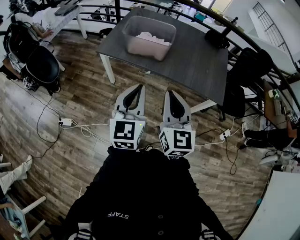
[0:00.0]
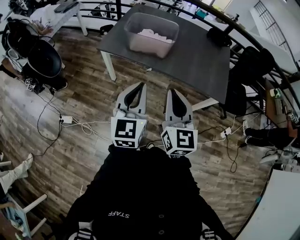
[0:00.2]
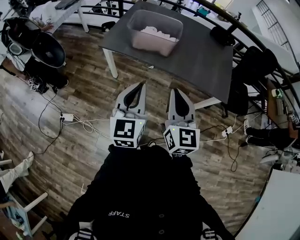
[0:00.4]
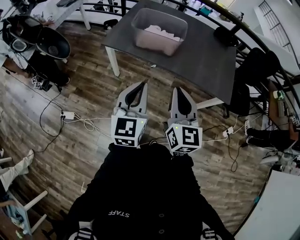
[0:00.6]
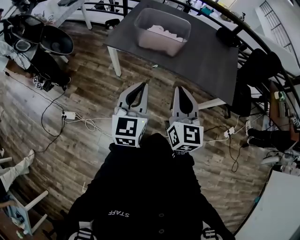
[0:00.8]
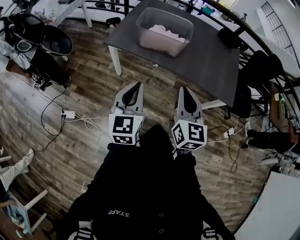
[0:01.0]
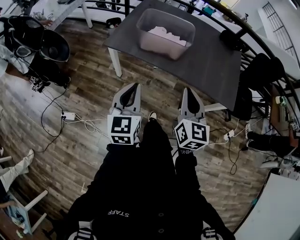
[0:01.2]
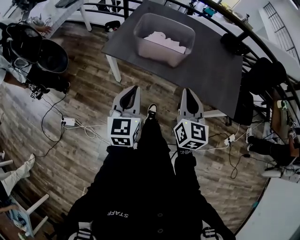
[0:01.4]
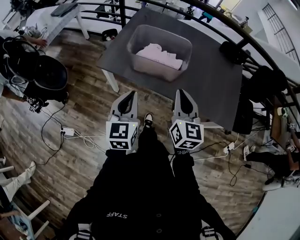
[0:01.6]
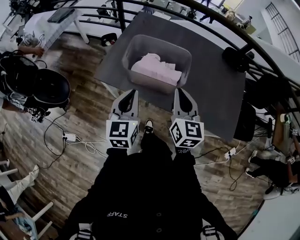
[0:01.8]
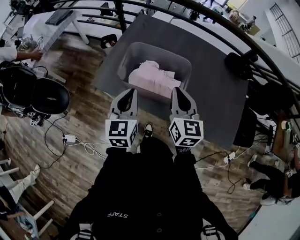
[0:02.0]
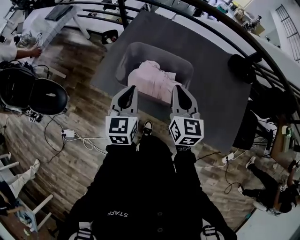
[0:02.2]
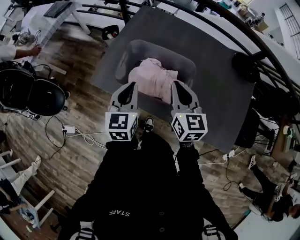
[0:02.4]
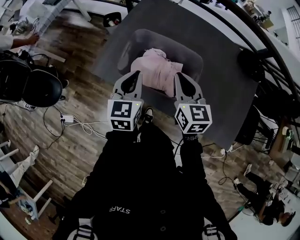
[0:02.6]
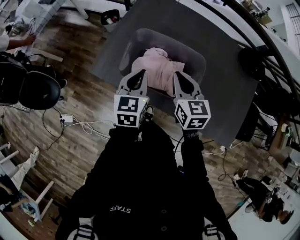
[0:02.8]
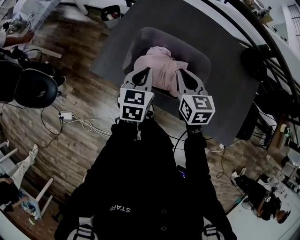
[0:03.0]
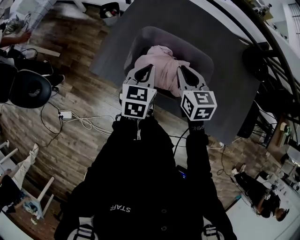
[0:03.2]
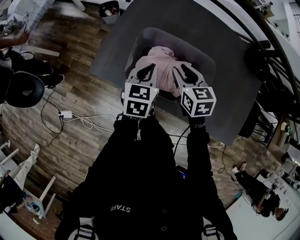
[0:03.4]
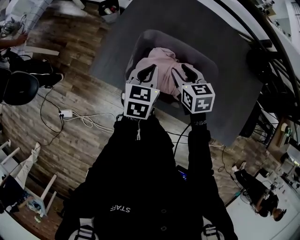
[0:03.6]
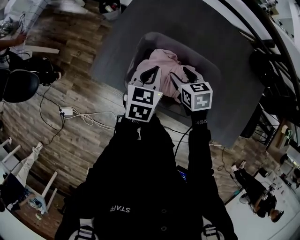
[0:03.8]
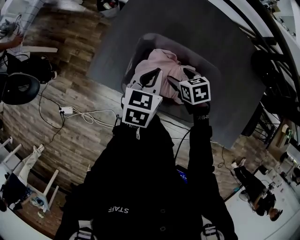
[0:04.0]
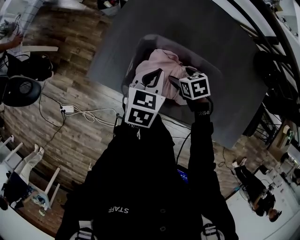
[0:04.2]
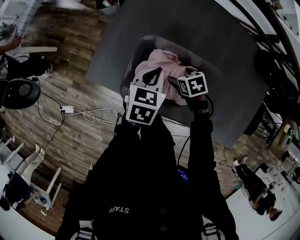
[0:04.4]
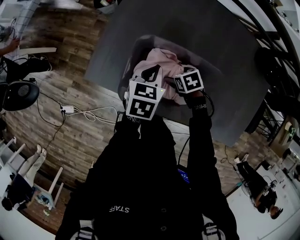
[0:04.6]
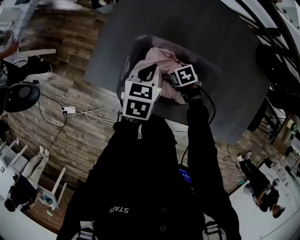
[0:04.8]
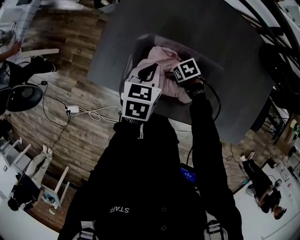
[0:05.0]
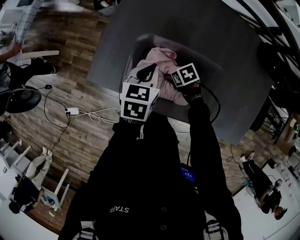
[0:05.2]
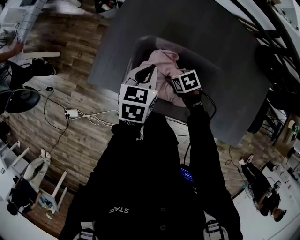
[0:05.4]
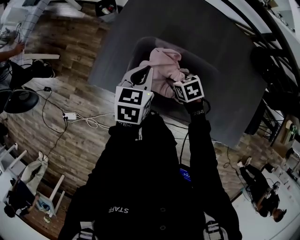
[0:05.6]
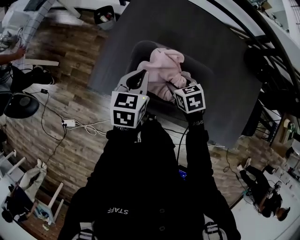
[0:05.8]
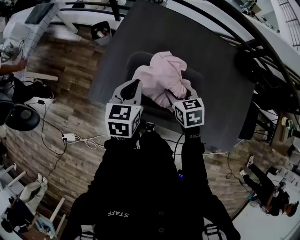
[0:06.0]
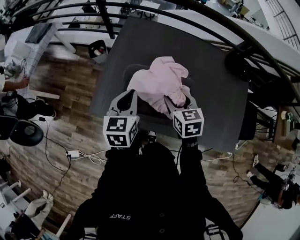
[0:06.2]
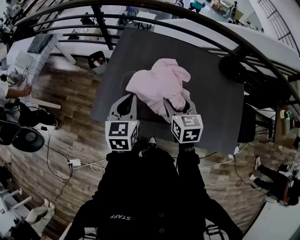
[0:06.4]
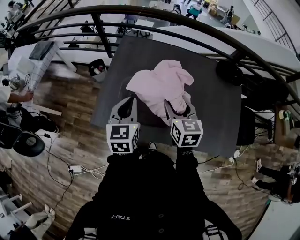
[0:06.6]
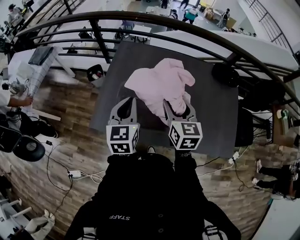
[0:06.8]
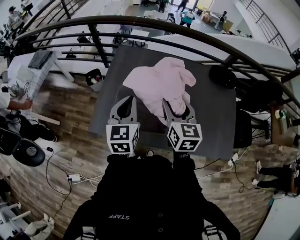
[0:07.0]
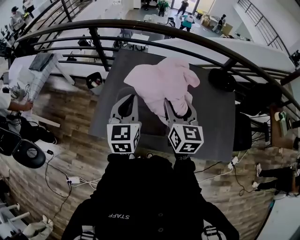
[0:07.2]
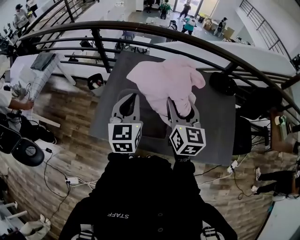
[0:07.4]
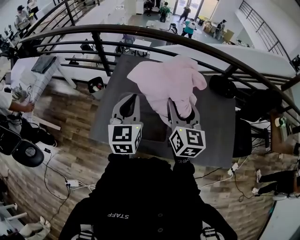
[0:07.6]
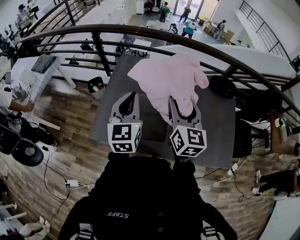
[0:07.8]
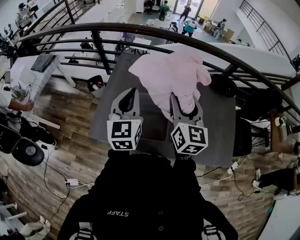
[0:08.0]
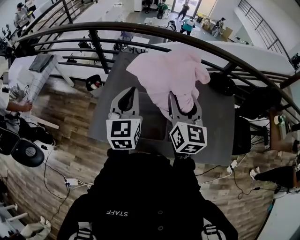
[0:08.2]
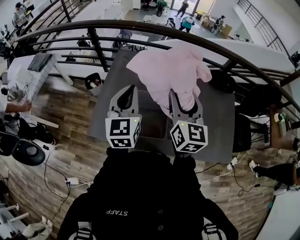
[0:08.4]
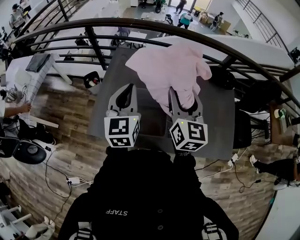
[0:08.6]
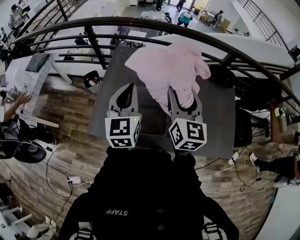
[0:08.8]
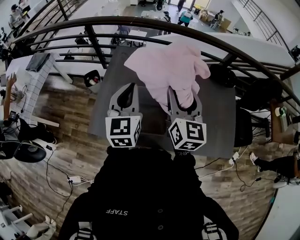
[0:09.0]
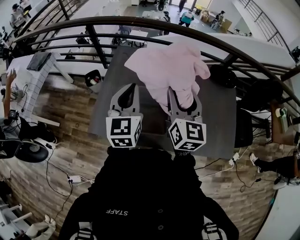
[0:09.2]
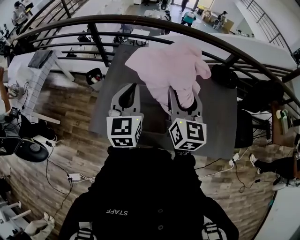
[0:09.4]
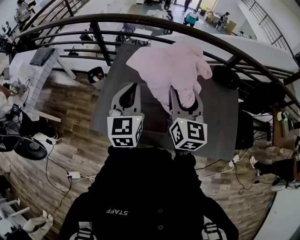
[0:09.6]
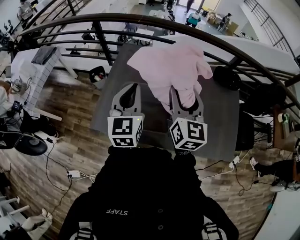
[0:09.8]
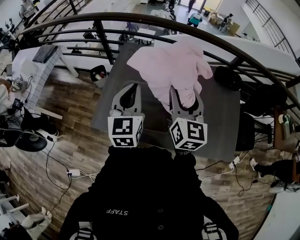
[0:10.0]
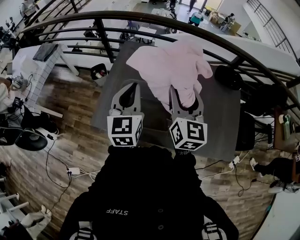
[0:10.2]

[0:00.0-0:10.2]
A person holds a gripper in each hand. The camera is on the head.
0:00.0 to 0:01.4: The left gripper heads forward, downward and to the left, covering approximately 20 cm. Meanwhile the right gripper moves forward and downward, about 20 cm.
0:01.4 to 0:03.0: Both grippers travel together forward, approximately 40 cm. The left gripper rotates roughly 20 degrees; the right gripper turns by roughly 30 degrees.
0:03.0 to 0:04.4: The left gripper heads forward and downward, covering roughly 10 cm; the right gripper is displaced downward by some 20 cm, tips its fingers downward by about 40 degrees, and opens.
0:04.4 to 0:05.8: The right gripper is displaced upward by approximately 10 cm. Meanwhile the left gripper travels upward by about 5 cm.
0:05.8 to 0:07.2: The left gripper is displaced upward by approximately 20 cm, and turns by about 30 degrees, while the right gripper goes approximately 30 cm upward, and points its fingers about 50 degrees further upward.
0:07.2 to 0:10.2: The grippers make only small movements.

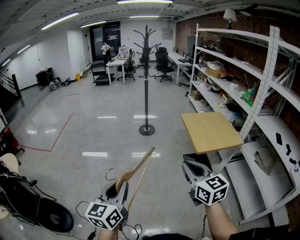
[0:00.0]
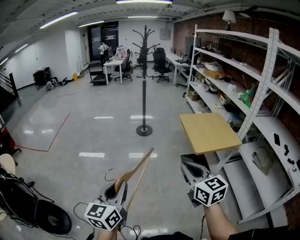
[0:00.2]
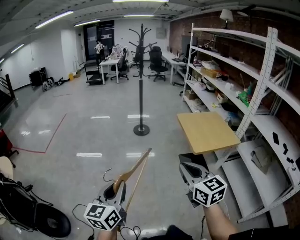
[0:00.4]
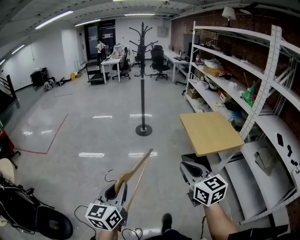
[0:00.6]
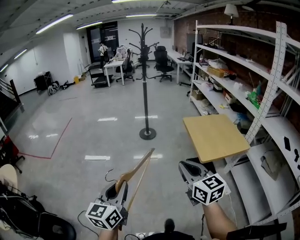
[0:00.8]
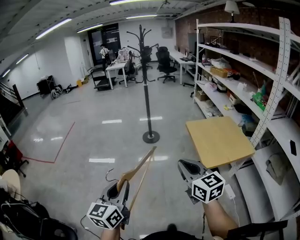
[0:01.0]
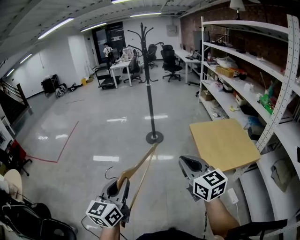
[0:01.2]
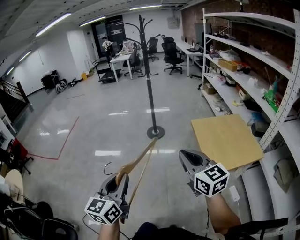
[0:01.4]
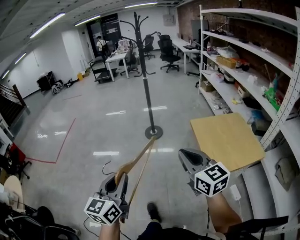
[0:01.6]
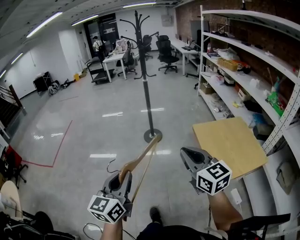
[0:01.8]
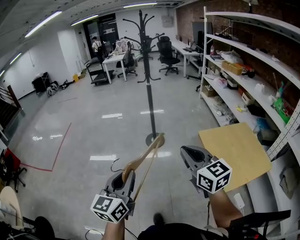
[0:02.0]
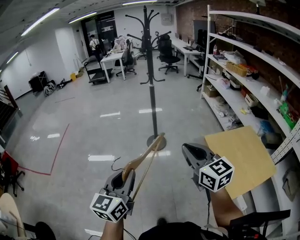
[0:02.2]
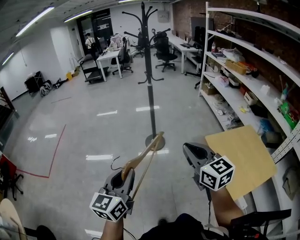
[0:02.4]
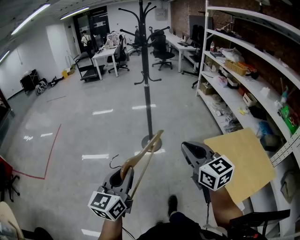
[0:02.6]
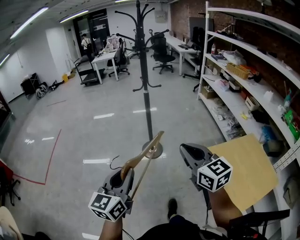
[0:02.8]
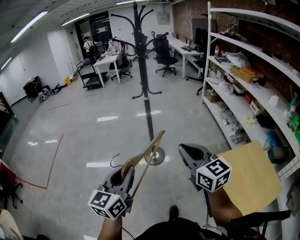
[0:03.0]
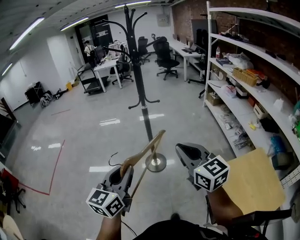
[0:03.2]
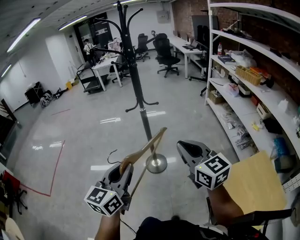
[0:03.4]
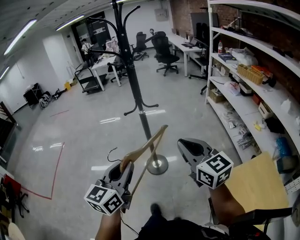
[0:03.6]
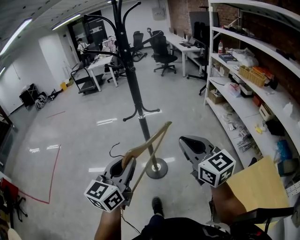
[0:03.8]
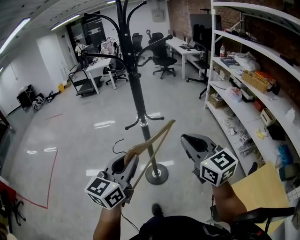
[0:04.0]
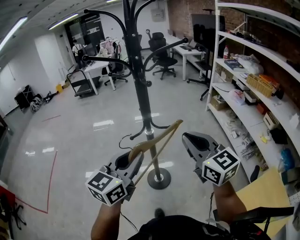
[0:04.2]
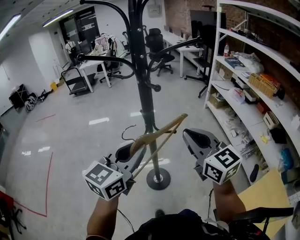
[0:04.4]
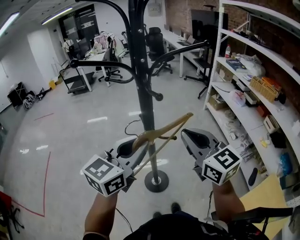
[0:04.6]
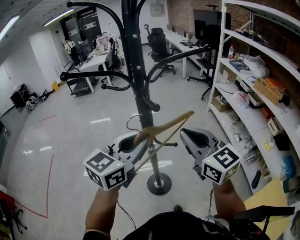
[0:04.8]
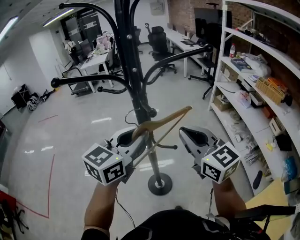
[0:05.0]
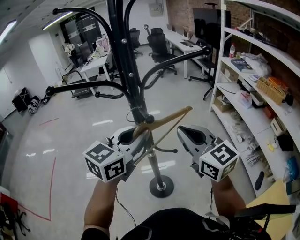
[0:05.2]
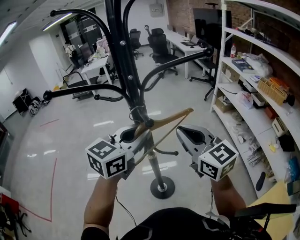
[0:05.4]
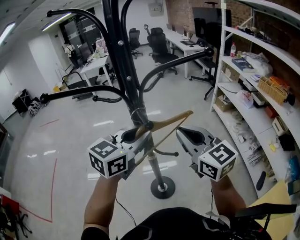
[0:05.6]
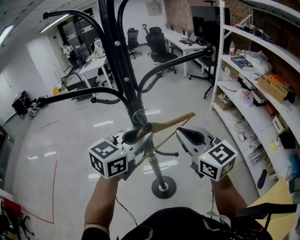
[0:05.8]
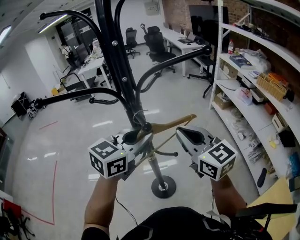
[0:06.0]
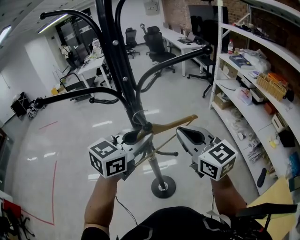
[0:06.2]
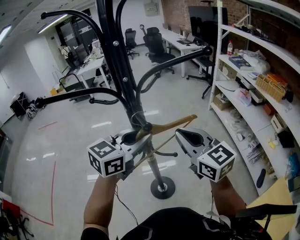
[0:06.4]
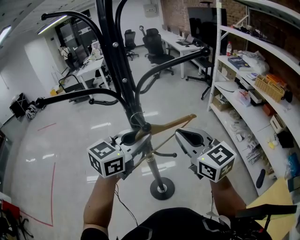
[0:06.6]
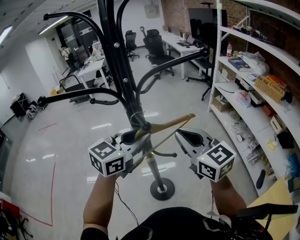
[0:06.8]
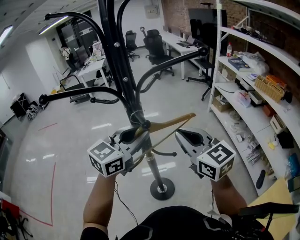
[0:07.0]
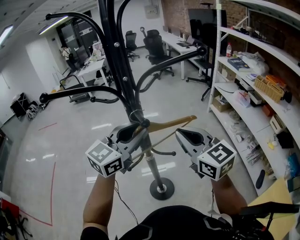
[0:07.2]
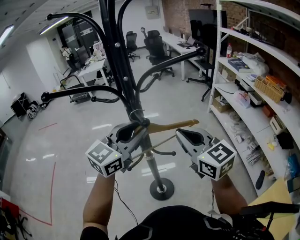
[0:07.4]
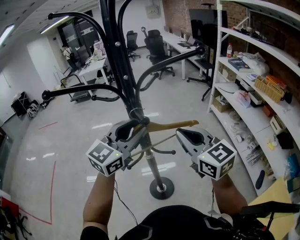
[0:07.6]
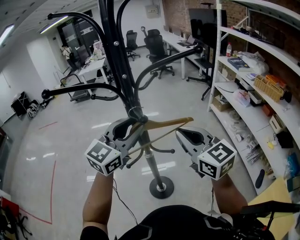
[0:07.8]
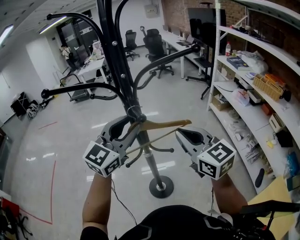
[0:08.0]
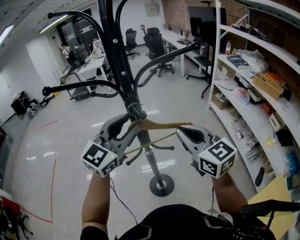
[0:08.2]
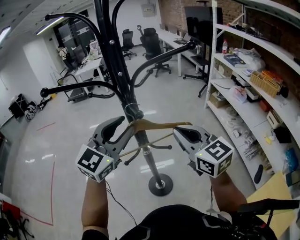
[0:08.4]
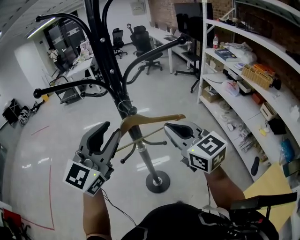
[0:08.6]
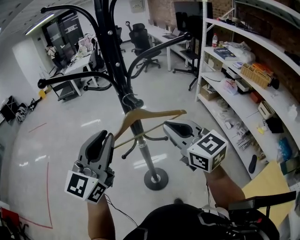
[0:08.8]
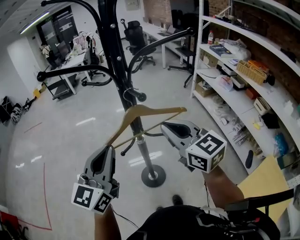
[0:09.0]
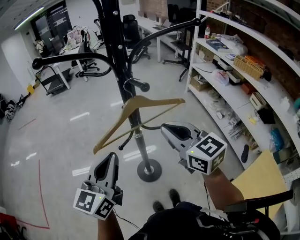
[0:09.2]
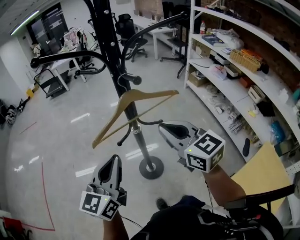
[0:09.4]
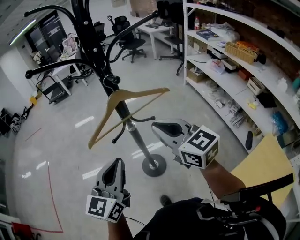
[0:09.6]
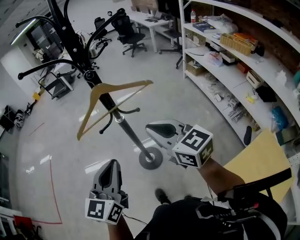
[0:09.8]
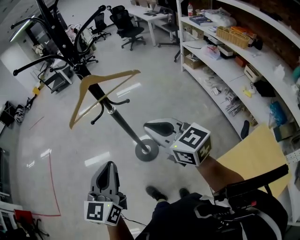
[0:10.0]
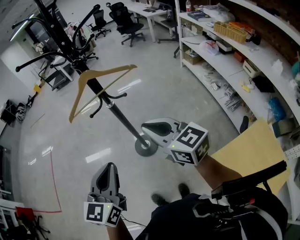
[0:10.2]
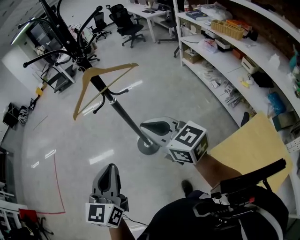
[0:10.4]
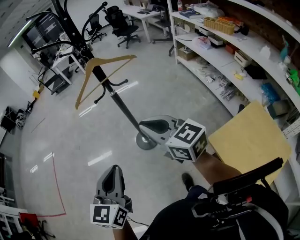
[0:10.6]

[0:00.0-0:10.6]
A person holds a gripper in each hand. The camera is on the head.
0:00.0 to 0:01.6: Both grippers move forward, approximately 30 cm.
0:01.6 to 0:03.0: Both grippers are carried forward, some 40 cm.
0:03.0 to 0:04.6: The pair of grippers is taken forward, roughly 50 cm. The left gripper turns by roughly 20 degrees.
0:04.6 to 0:06.0: The two grippers go approximately 10 cm forward.
0:06.0 to 0:07.6: The grippers make only small movements.
0:07.6 to 0:09.0: The right gripper moves approximately 5 cm. Meanwhile the left gripper is displaced backward and to the left by approximately 15 cm, and closes.
0:09.0 to 0:10.6: Both grippers move backward, some 30 cm.

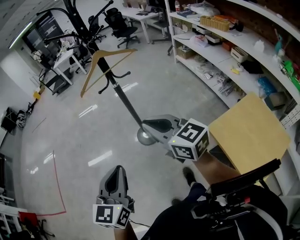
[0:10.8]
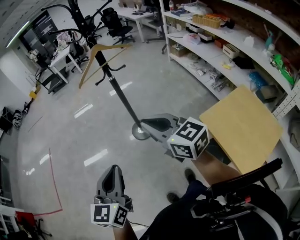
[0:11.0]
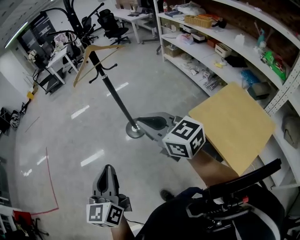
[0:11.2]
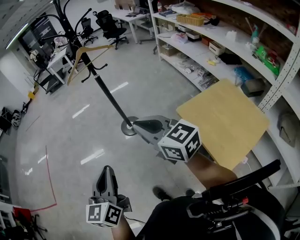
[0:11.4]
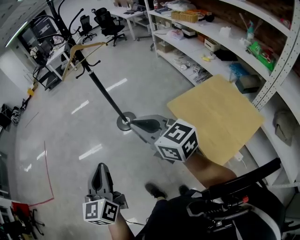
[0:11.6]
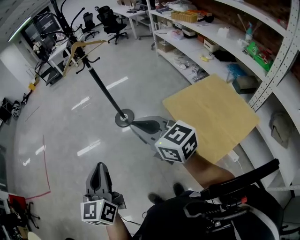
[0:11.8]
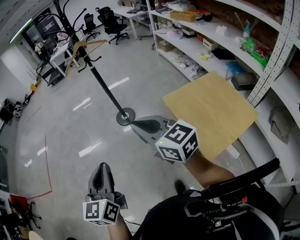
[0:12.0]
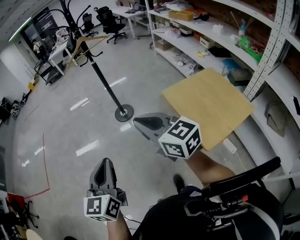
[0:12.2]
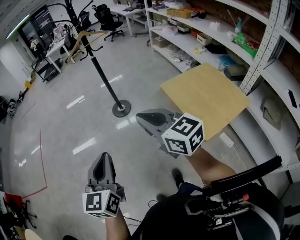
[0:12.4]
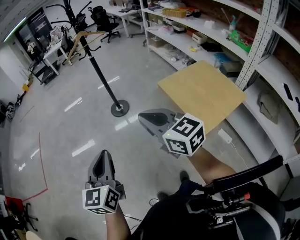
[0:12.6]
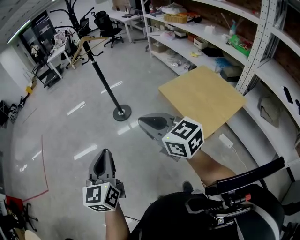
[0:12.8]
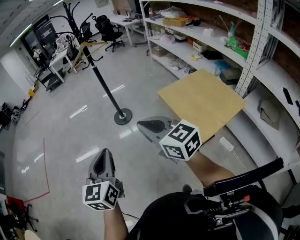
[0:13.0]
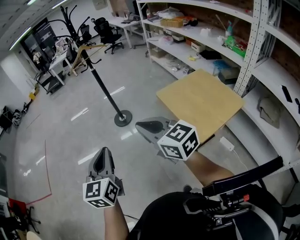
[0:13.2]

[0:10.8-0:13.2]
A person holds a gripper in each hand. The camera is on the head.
0:10.8 to 0:12.0: The grippers both shift backward by about 30 cm.
0:12.0 to 0:13.2: The left gripper goes about 5 cm backward. The right gripper moves backward, roughly 10 cm.
